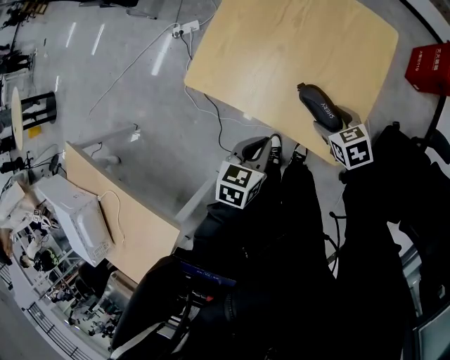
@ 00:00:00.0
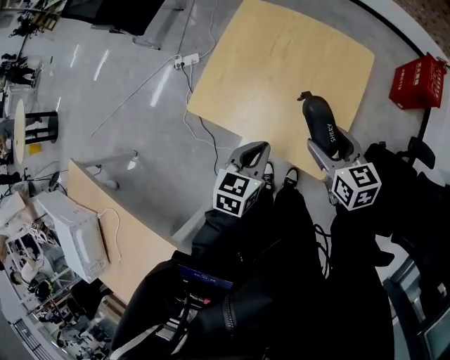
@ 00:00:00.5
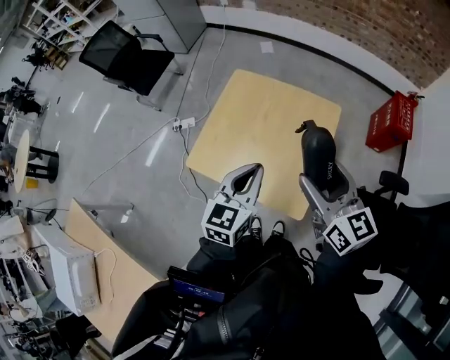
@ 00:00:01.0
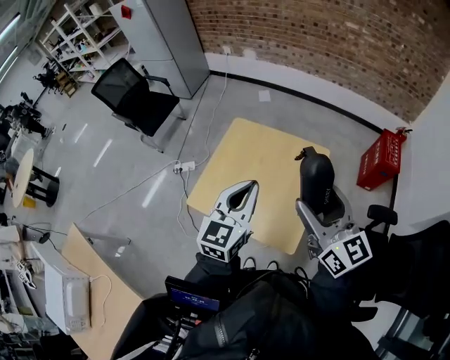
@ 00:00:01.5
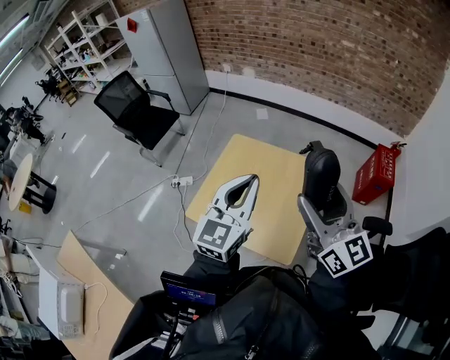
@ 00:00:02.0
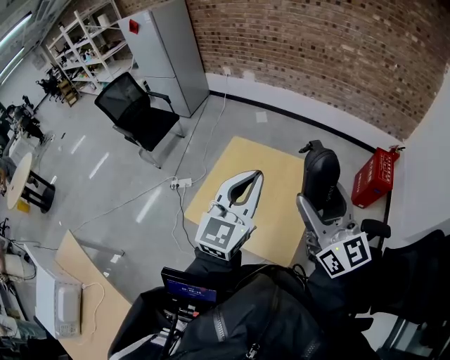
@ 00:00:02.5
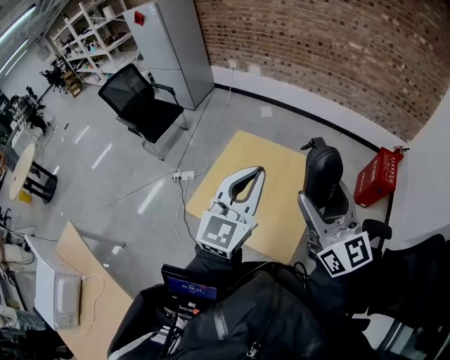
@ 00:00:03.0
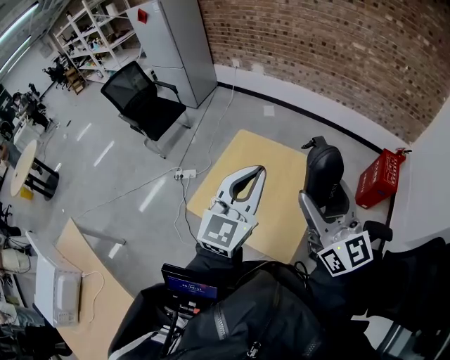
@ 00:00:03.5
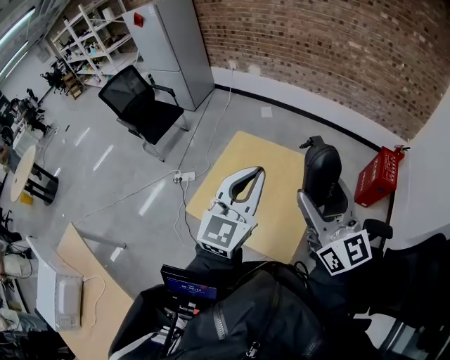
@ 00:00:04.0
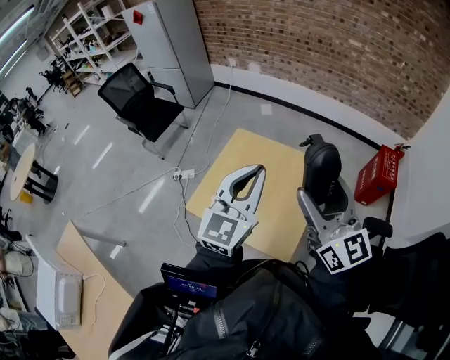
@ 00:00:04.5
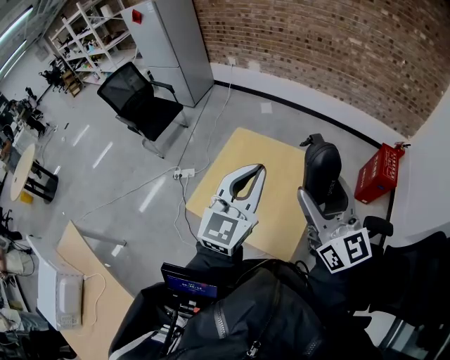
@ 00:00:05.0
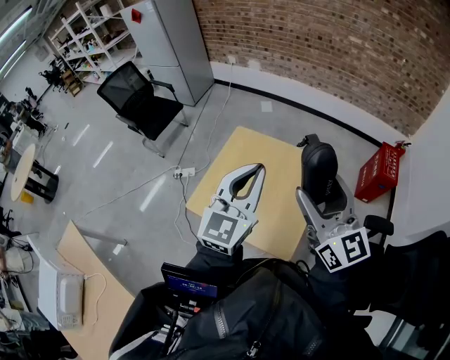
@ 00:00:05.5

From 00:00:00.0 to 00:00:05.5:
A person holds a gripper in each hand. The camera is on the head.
From 00:00:00.0 to 00:00:02.0: The two grippers go approximately 50 cm upward. The left gripper points its fingers about 50 degrees further upward. The right gripper tilts its fingers about 70 degrees upward.
From 00:00:02.0 to 00:00:05.5: The grippers move only a little.

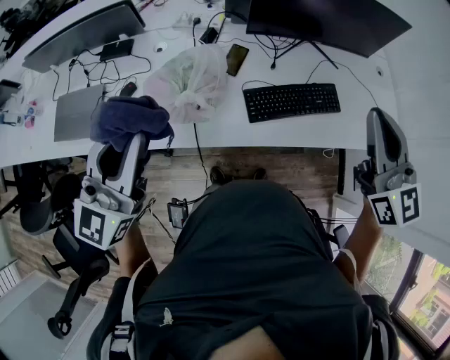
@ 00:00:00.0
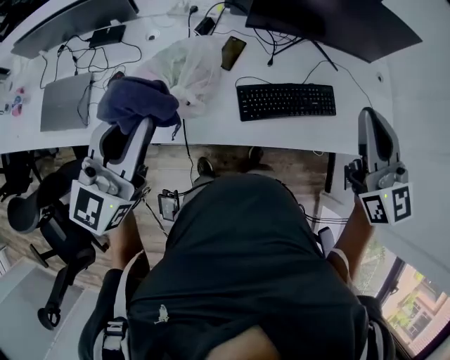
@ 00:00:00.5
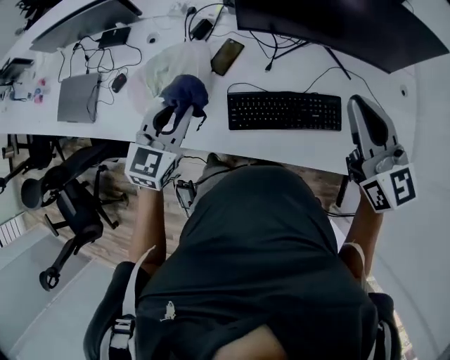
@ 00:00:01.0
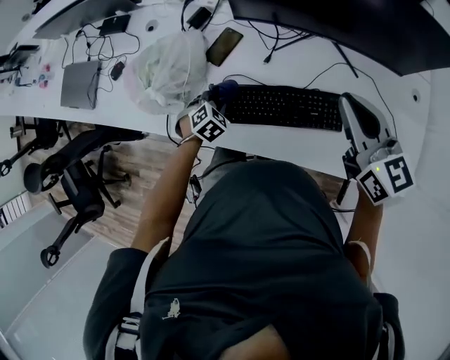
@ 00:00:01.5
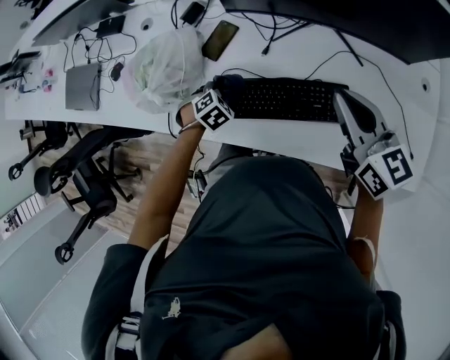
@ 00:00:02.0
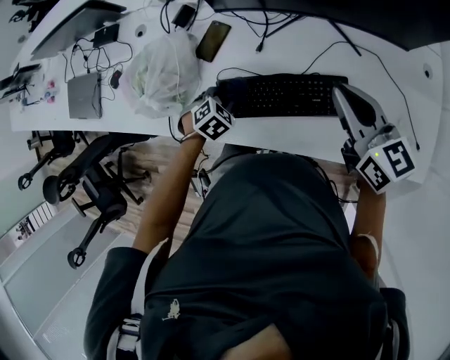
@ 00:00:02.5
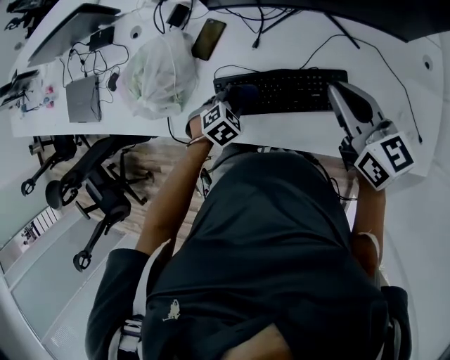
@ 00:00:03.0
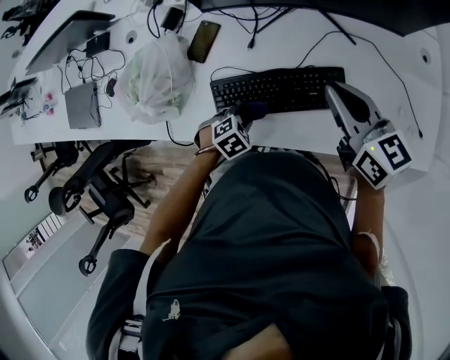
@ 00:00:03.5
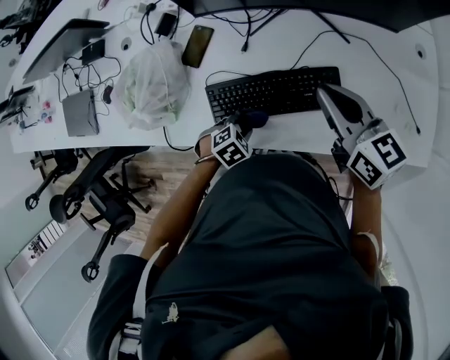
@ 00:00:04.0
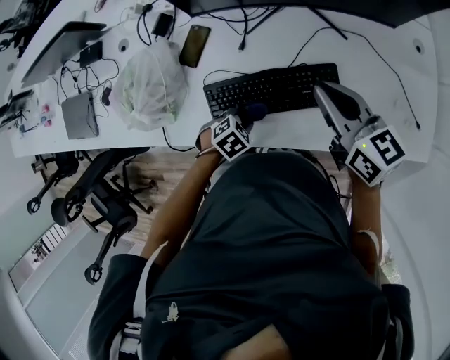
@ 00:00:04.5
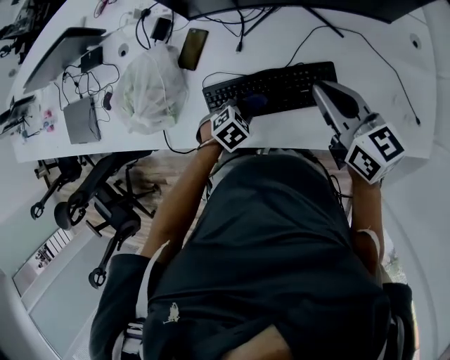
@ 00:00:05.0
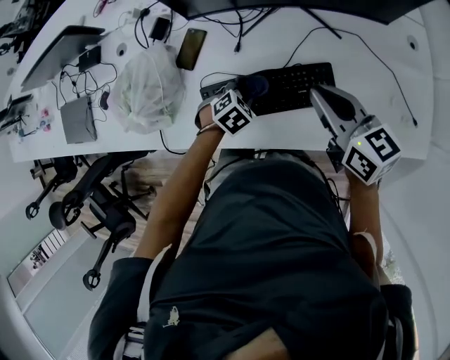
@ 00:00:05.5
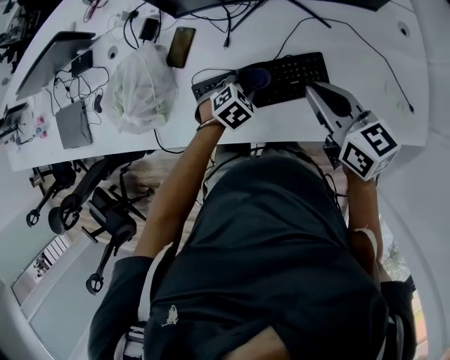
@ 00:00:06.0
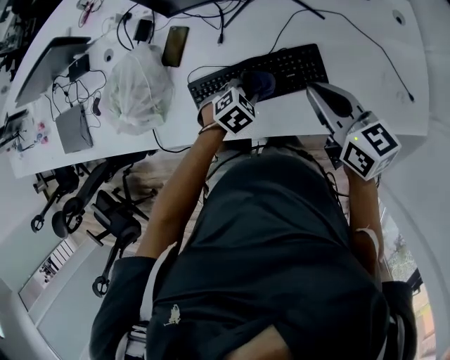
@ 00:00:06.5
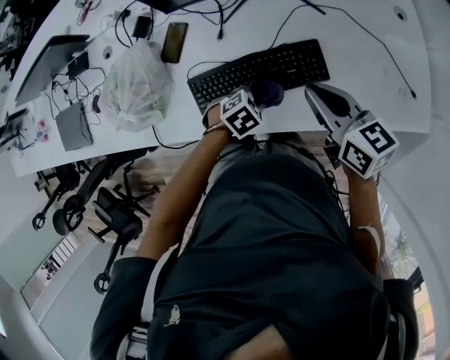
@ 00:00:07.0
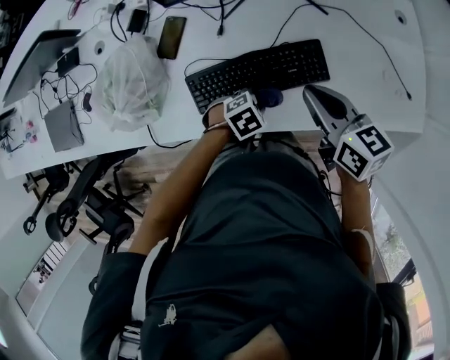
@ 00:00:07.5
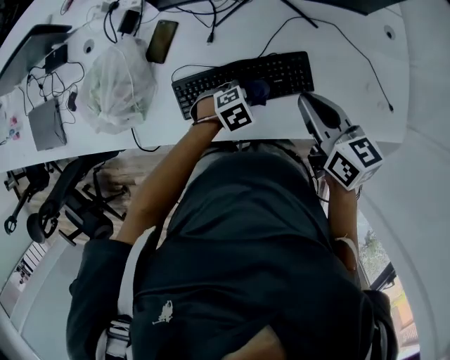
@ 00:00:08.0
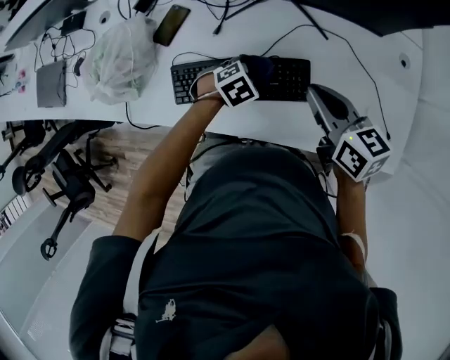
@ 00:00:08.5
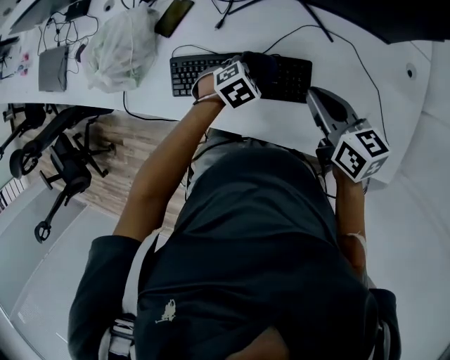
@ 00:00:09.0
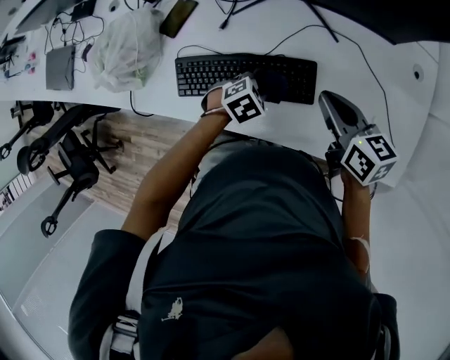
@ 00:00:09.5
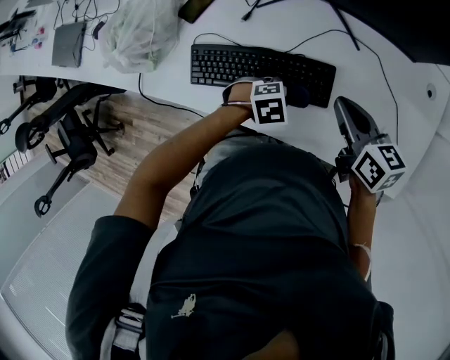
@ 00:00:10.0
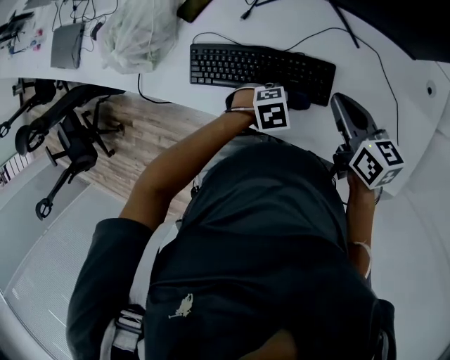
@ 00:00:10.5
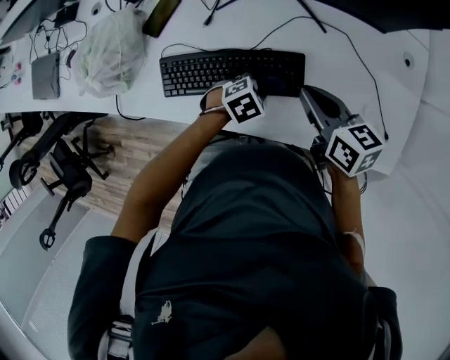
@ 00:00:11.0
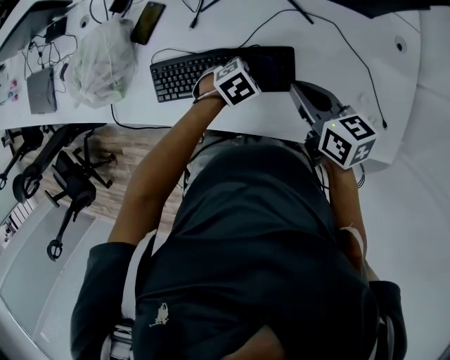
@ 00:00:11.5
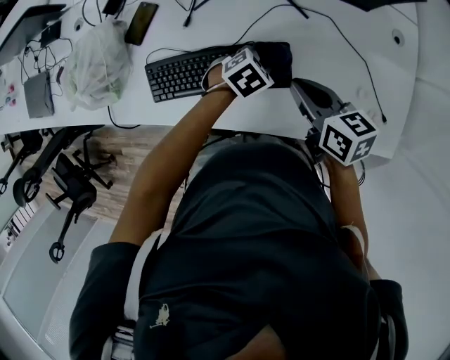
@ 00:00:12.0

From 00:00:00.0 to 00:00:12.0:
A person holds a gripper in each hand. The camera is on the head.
From 00:00:00.0 to 00:00:02.0: The left gripper moves downward and to the right, roughly 50 cm, and tilts its fingers approximately 80 degrees downward. The right gripper moves downward, forward and to the right, roughly 30 cm, and swivels approximately 40 degrees.
From 00:00:02.0 to 00:00:04.0: The left gripper moves some 15 cm.
From 00:00:04.0 to 00:00:06.0: The left gripper changes place by roughly 10 cm.
From 00:00:08.0 to 00:00:10.0: The right gripper moves some 10 cm. The left gripper changes place by approximately 10 cm.
From 00:00:10.0 to 00:00:12.0: The left gripper ends up roughly 10 cm from where it was.

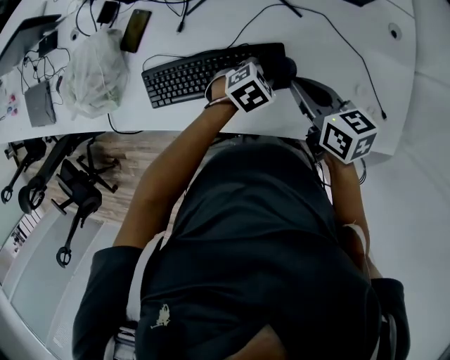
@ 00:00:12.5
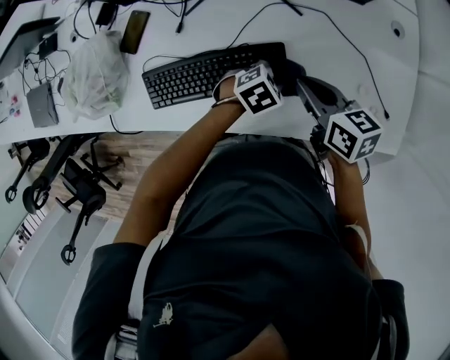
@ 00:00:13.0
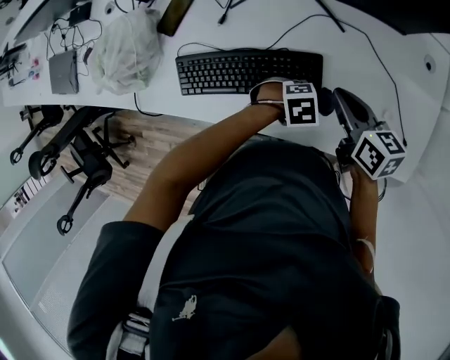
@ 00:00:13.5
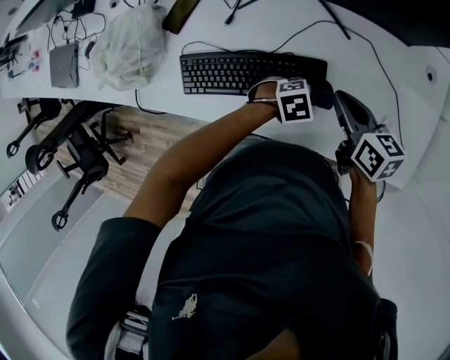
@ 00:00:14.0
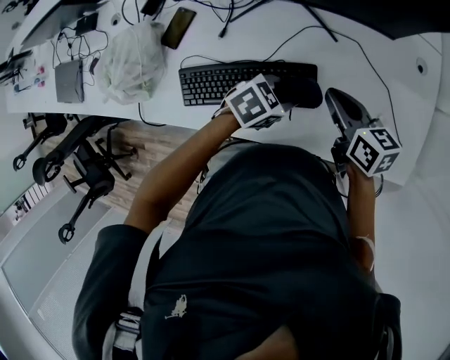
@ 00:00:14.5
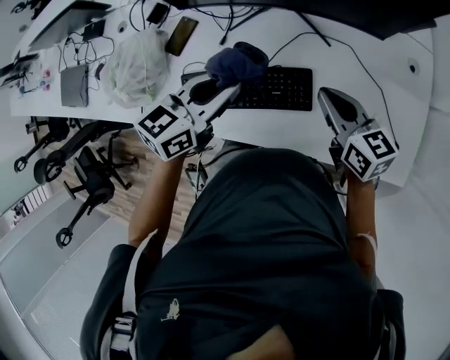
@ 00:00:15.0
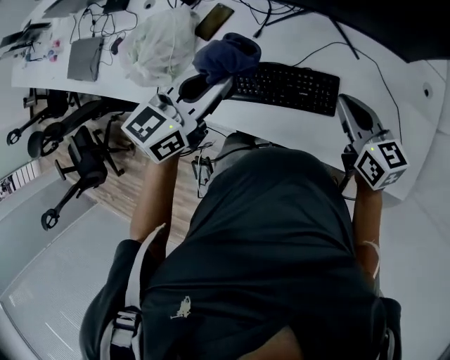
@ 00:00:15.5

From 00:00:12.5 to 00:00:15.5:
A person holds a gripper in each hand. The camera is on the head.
From 00:00:14.0 to 00:00:15.5: The right gripper goes roughly 10 cm upward. Meanwhile the left gripper heads upward, covering some 30 cm, and tilts its fingers approximately 40 degrees upward.

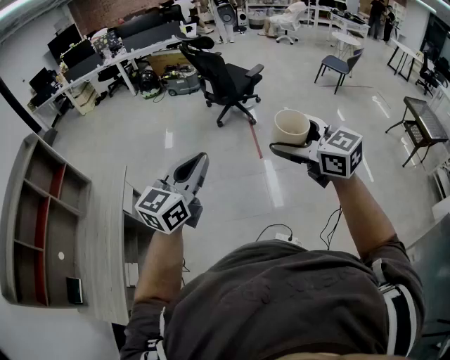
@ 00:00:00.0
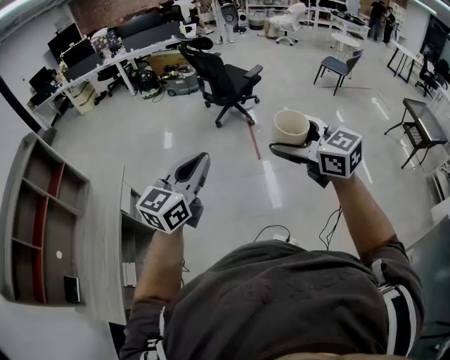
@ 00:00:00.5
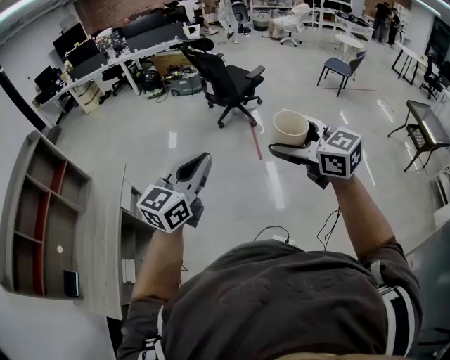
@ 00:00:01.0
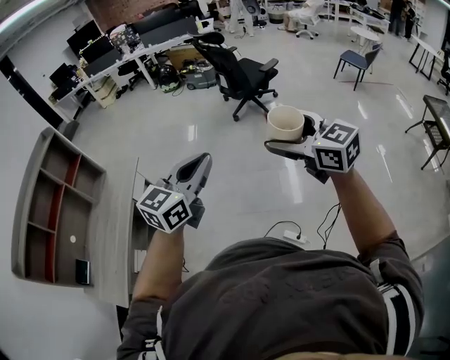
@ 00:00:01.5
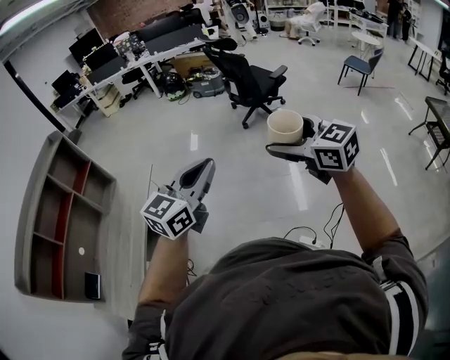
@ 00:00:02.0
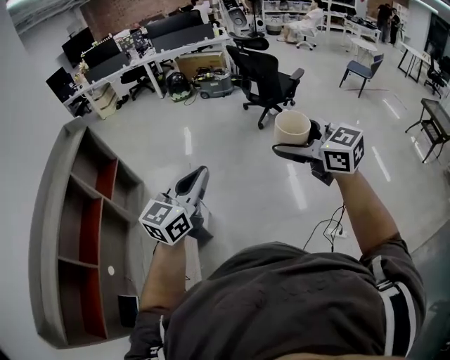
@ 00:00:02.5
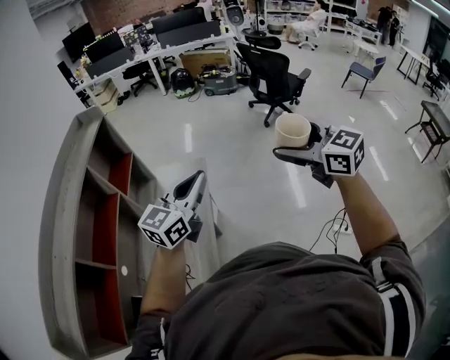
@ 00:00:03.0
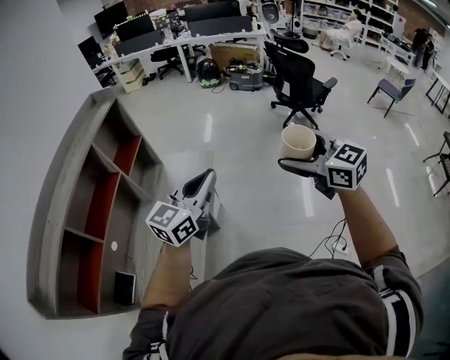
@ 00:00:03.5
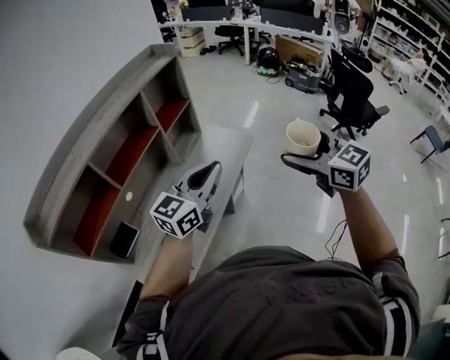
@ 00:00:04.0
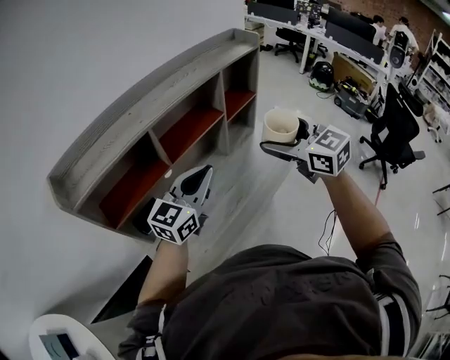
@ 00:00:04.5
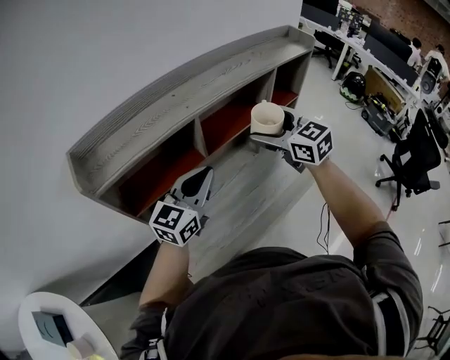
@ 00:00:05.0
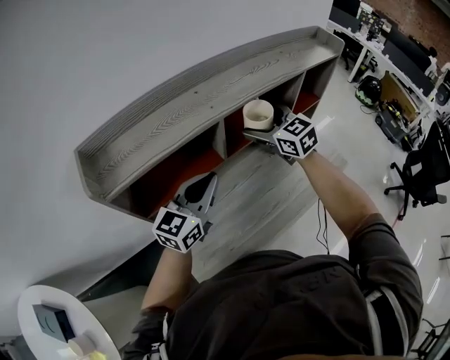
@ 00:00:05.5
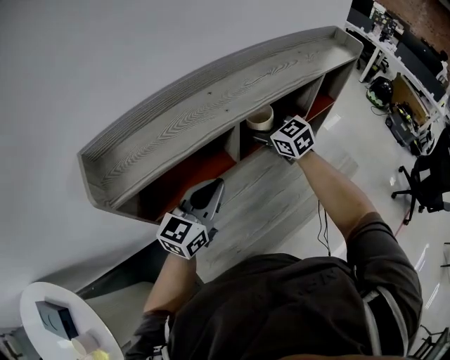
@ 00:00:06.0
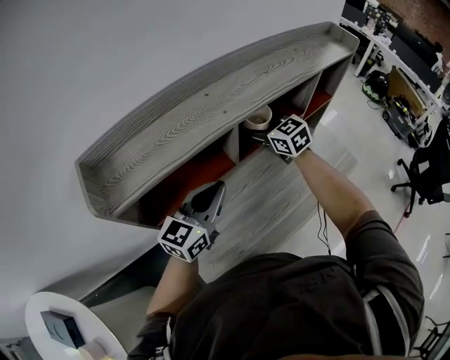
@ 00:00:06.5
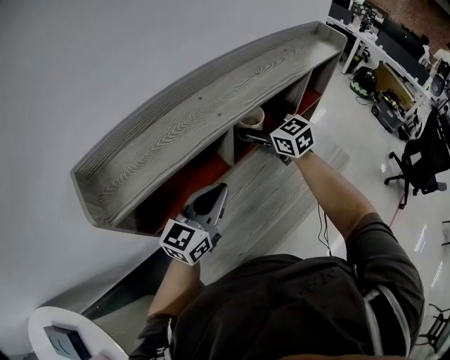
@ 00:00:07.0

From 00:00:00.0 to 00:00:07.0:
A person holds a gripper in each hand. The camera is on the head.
From 00:00:00.0 to 00:00:02.0: Both grippers move to the left, roughly 5 cm.
From 00:00:02.0 to 00:00:03.5: Both grippers are carried to the left, some 40 cm.
From 00:00:03.5 to 00:00:05.0: The pair of grippers is taken some 50 cm. The right gripper swivels approximately 50 degrees, while the left gripper changes its angle by about 50 degrees.
From 00:00:05.0 to 00:00:07.0: The left gripper ends up approximately 5 cm from where it was, while the right gripper shifts approximately 15 cm forward, to the left and downward.
